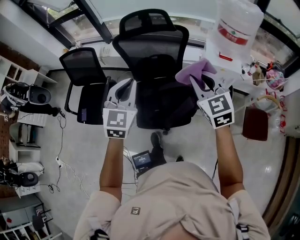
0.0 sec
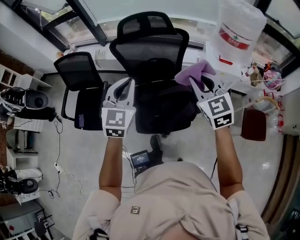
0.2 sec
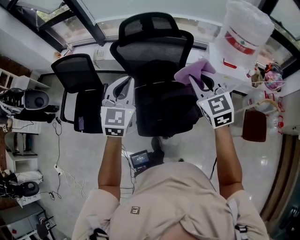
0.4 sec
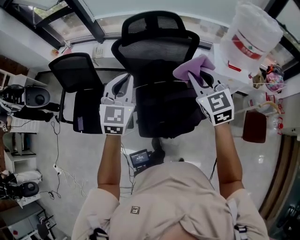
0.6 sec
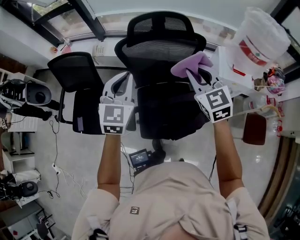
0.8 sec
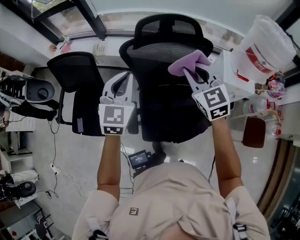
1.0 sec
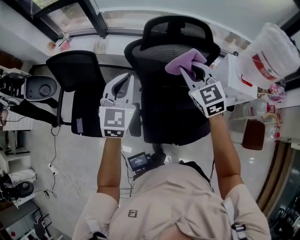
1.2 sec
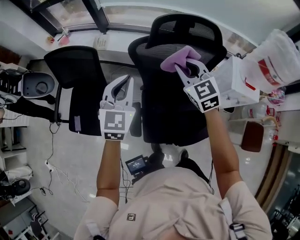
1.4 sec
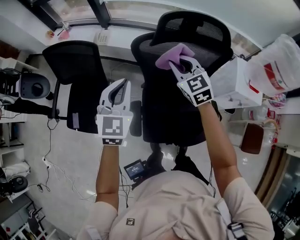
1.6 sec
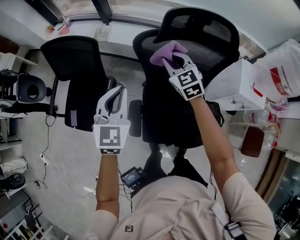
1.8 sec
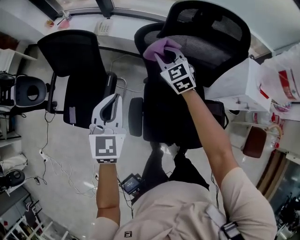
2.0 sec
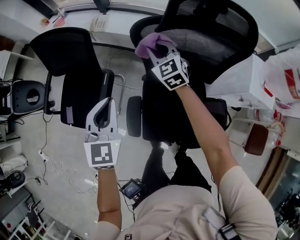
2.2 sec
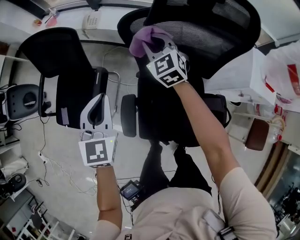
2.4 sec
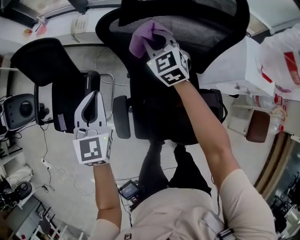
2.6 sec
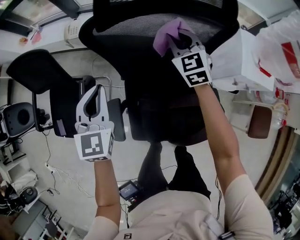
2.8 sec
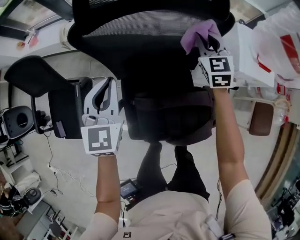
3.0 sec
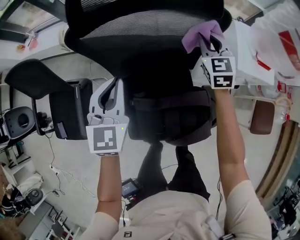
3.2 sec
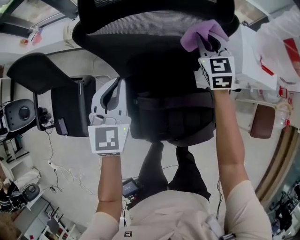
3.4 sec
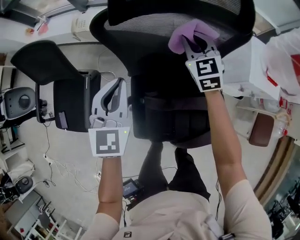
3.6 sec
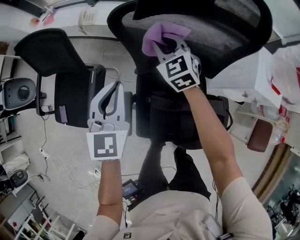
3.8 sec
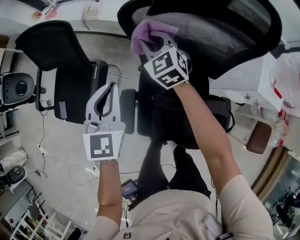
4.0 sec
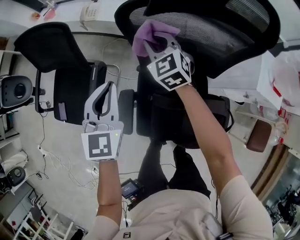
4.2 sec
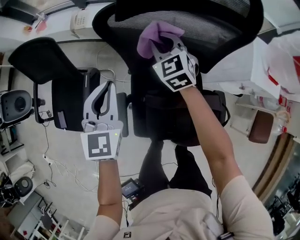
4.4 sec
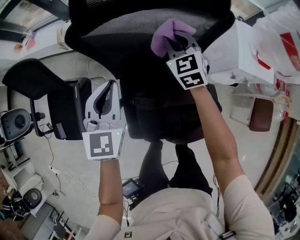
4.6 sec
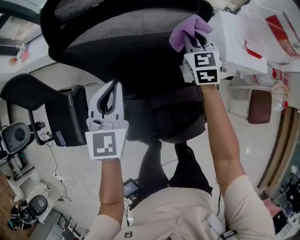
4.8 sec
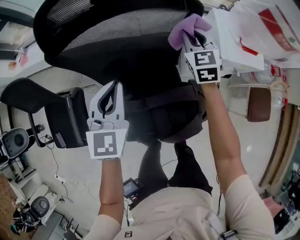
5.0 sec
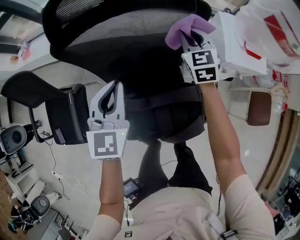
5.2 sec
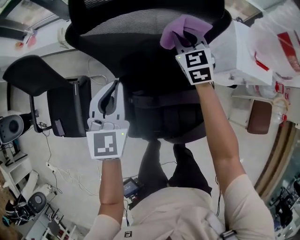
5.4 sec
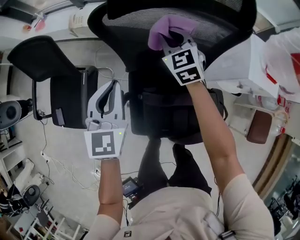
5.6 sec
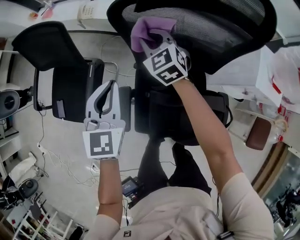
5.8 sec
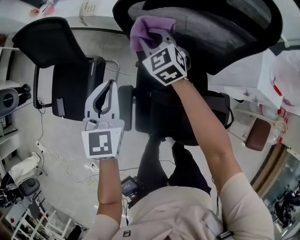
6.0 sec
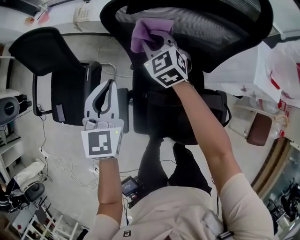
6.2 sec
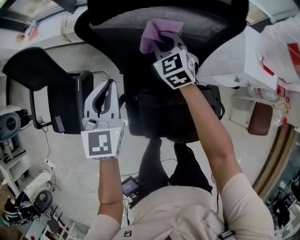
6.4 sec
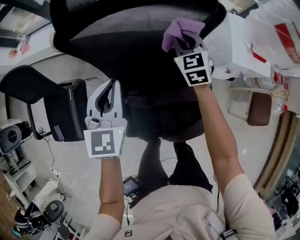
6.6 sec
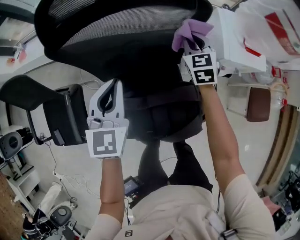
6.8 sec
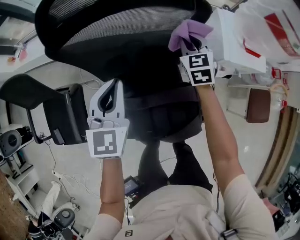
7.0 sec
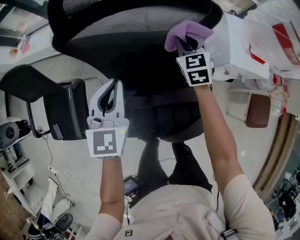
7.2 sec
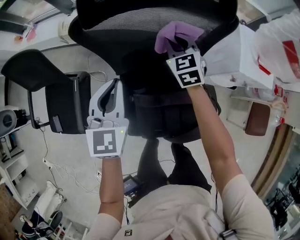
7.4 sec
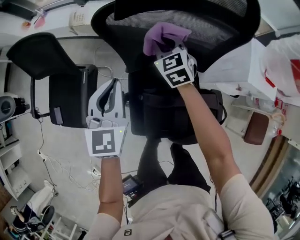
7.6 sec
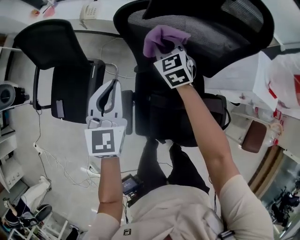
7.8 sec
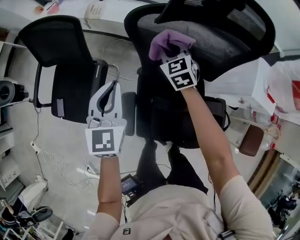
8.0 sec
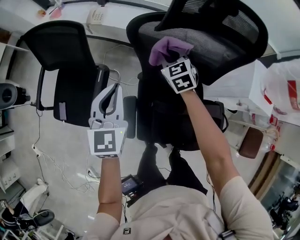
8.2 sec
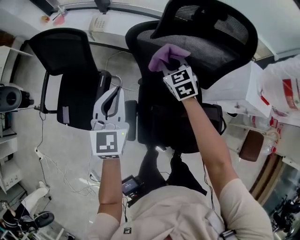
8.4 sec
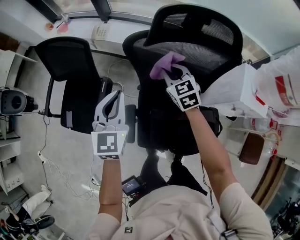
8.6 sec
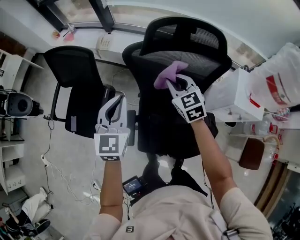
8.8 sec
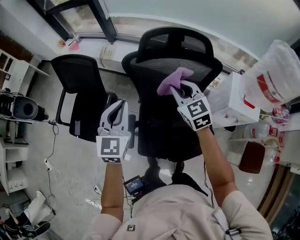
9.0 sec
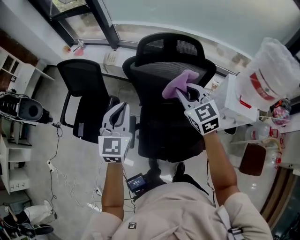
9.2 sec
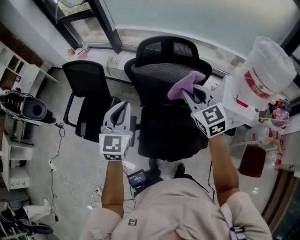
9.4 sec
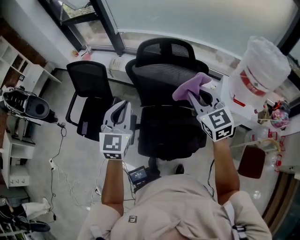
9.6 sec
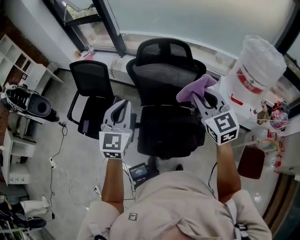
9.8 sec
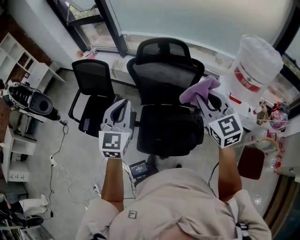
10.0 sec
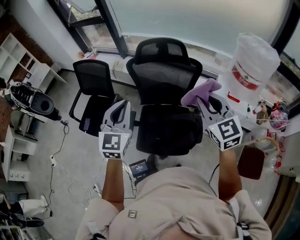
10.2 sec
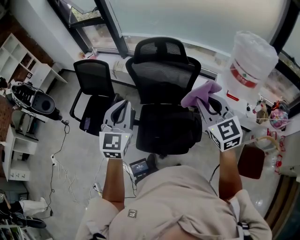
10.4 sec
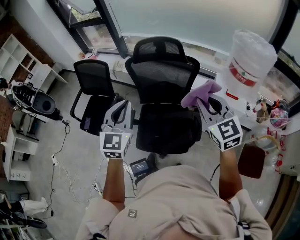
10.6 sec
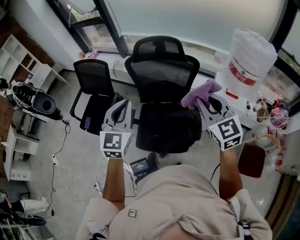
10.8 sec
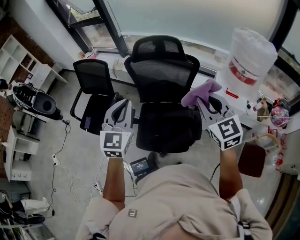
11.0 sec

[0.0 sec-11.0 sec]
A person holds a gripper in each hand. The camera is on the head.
0.0 sec to 1.6 sec: The two grippers go roughly 40 cm forward and to the left.
1.6 sec to 3.2 sec: Both grippers travel together to the right and downward, about 30 cm. The right gripper turns by about 30 degrees.
4.8 sec to 6.2 sec: The right gripper shifts by roughly 35 cm, and swivels about 30 degrees. Meanwhile the left gripper ends up approximately 20 cm from where it was.
6.2 sec to 7.8 sec: The right gripper goes to the right and returns, some 35 cm each way; the left gripper goes to the right and returns, roughly 20 cm each way.
7.8 sec to 9.4 sec: The left gripper moves upward and backward, approximately 25 cm. The right gripper shifts some 40 cm upward, backward and to the right.
9.4 sec to 11.0 sec: The right gripper heads backward and to the right, covering approximately 20 cm. The left gripper is displaced backward, upward and to the right by roughly 15 cm.

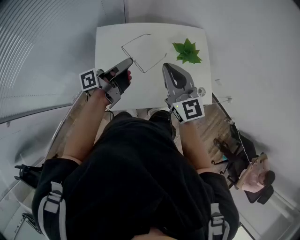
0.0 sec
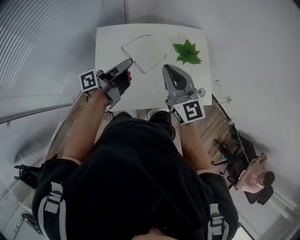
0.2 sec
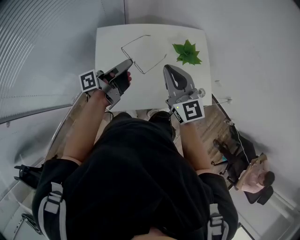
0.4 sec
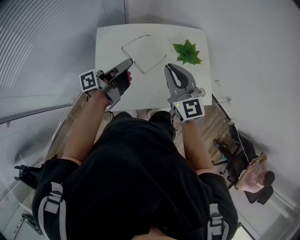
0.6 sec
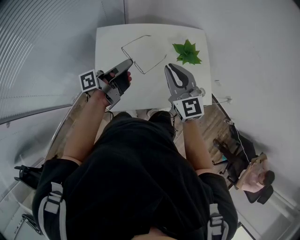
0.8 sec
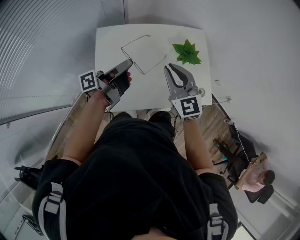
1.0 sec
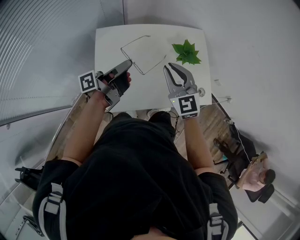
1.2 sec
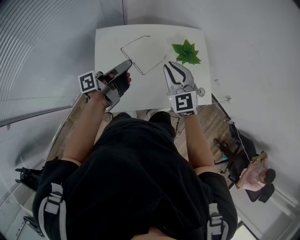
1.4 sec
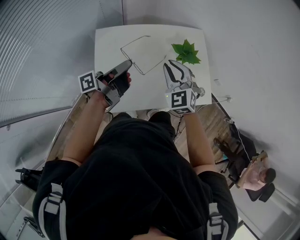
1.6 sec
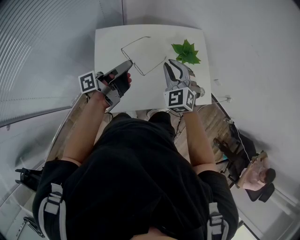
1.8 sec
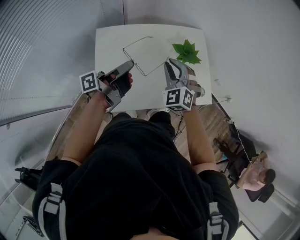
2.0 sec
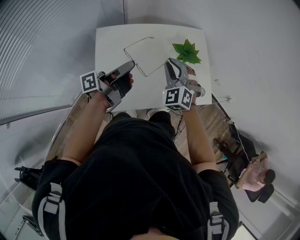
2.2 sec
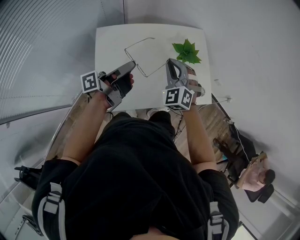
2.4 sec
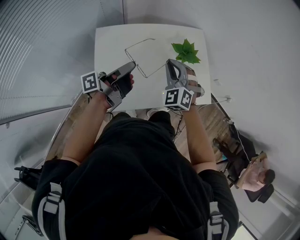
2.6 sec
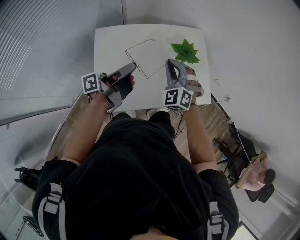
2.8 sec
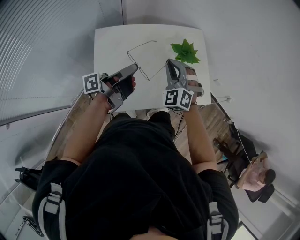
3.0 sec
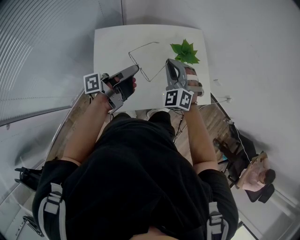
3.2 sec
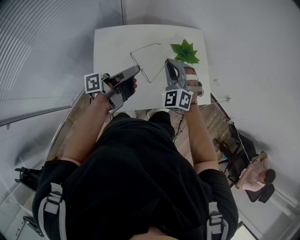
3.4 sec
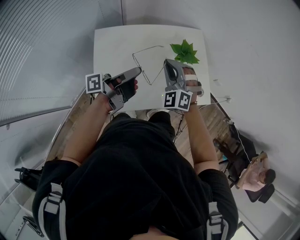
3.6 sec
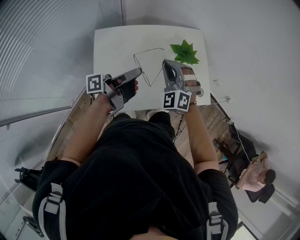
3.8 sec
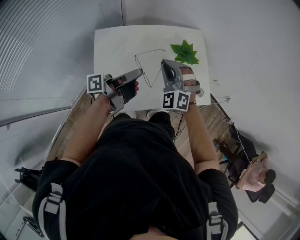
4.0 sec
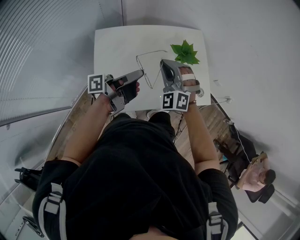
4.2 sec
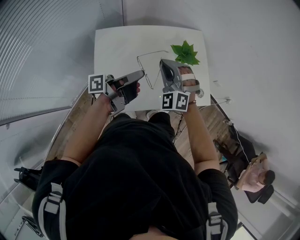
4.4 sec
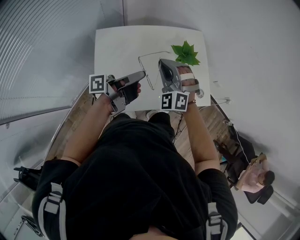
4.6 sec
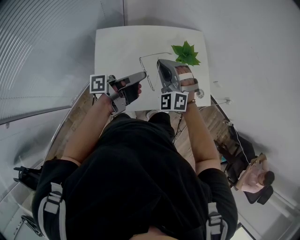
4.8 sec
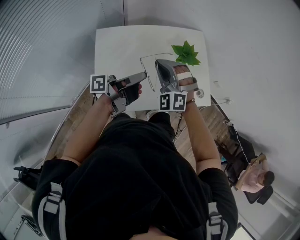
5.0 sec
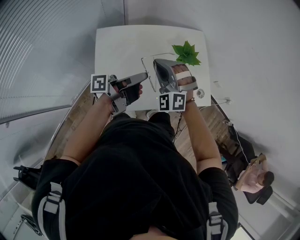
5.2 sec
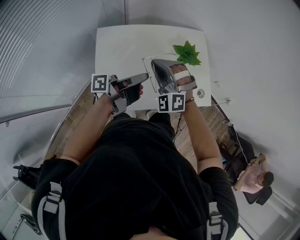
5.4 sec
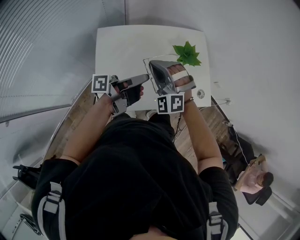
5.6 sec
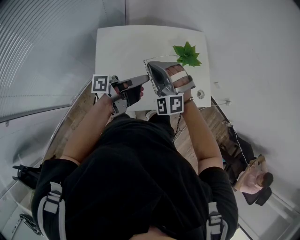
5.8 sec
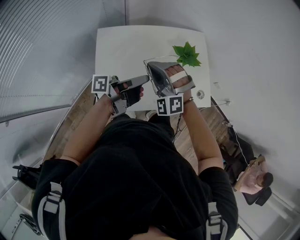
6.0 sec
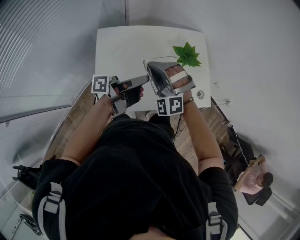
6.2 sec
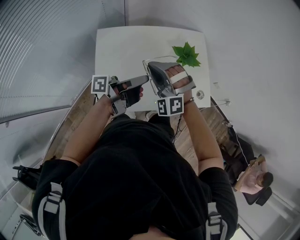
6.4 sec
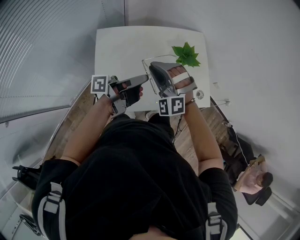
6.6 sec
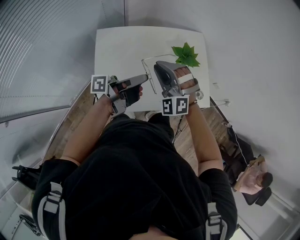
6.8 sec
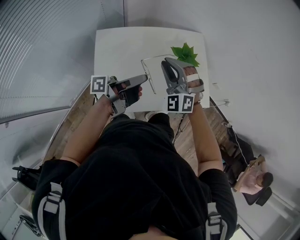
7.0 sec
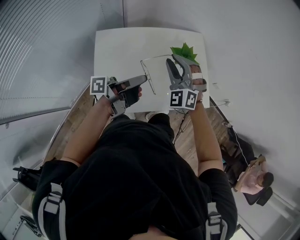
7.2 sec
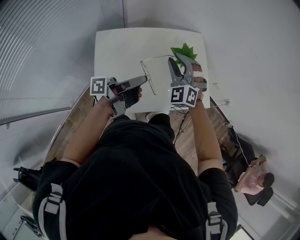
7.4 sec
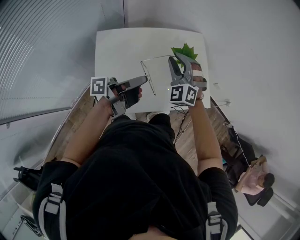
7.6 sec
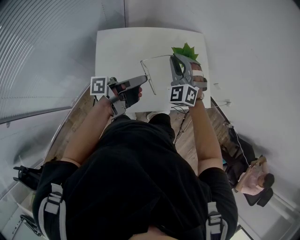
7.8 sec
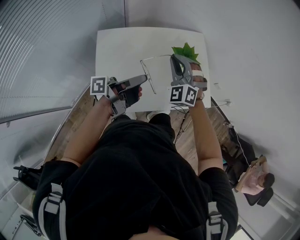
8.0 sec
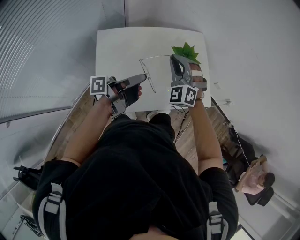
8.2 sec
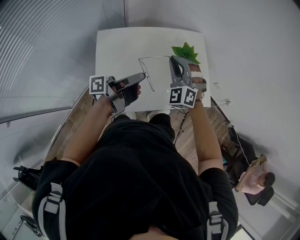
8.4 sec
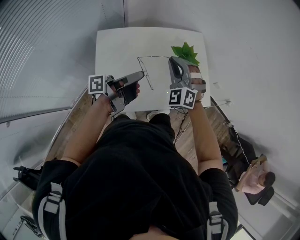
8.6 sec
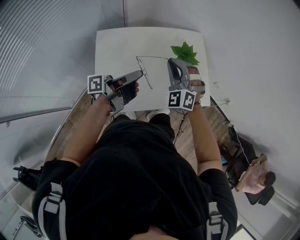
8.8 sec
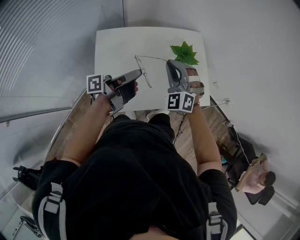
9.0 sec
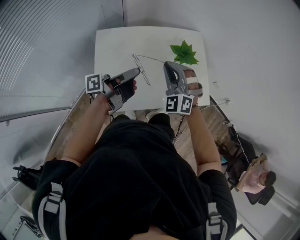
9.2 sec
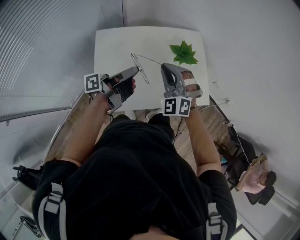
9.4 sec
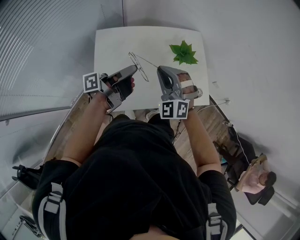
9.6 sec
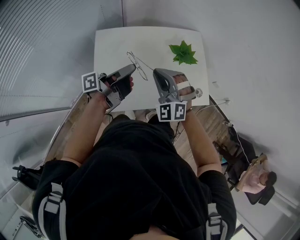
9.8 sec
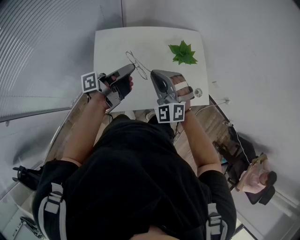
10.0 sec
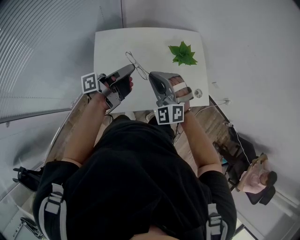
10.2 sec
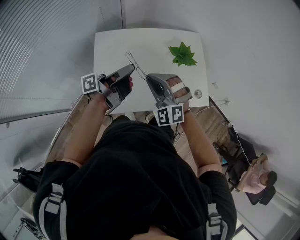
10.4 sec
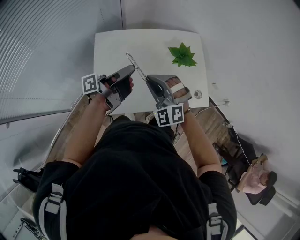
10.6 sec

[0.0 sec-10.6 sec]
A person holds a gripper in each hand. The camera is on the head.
0.0 sec to 1.6 sec: The right gripper goes approximately 5 cm downward, and rotates some 30 degrees.
4.6 sec to 6.0 sec: The right gripper changes place by some 5 cm.
6.0 sec to 7.6 sec: The right gripper changes place by roughly 10 cm, and rotates approximately 20 degrees.
7.6 sec to 9.0 sec: The right gripper closes its fingers.
9.0 sec to 10.6 sec: The right gripper ends up some 10 cm from where it was.

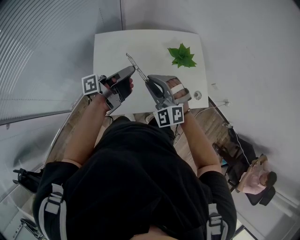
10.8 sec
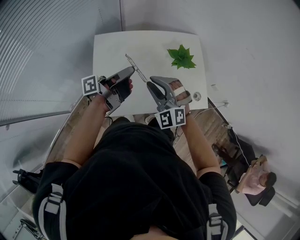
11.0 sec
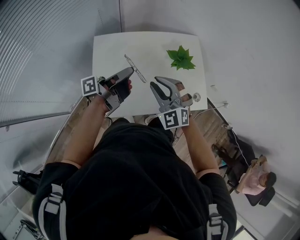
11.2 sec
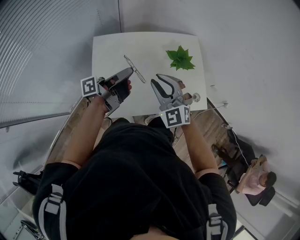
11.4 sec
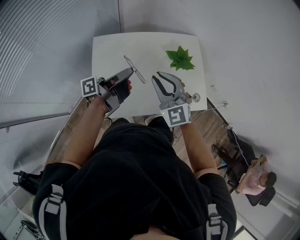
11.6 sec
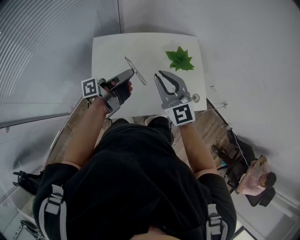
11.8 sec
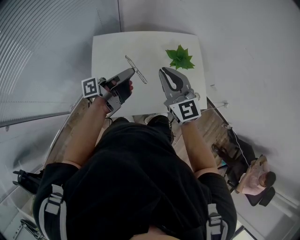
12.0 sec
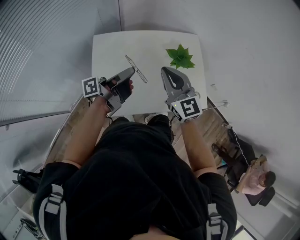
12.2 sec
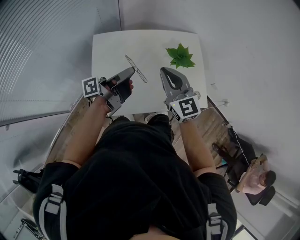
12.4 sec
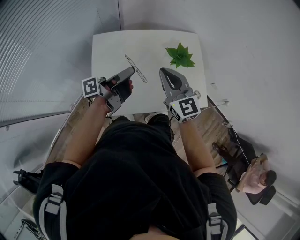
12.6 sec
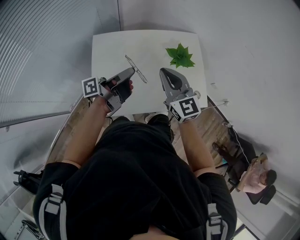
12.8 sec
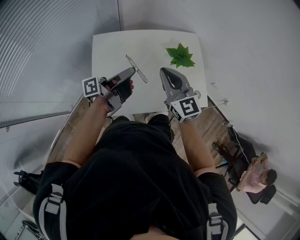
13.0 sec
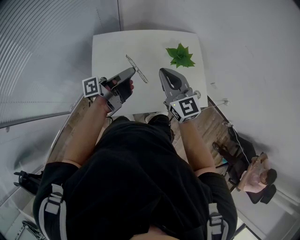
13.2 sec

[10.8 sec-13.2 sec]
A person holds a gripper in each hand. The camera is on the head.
10.8 sec to 12.0 sec: The right gripper travels upward by about 10 cm, and rolls clockwise, seen from behind, by roughly 40 degrees.
